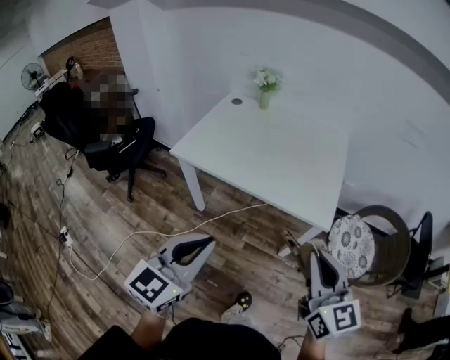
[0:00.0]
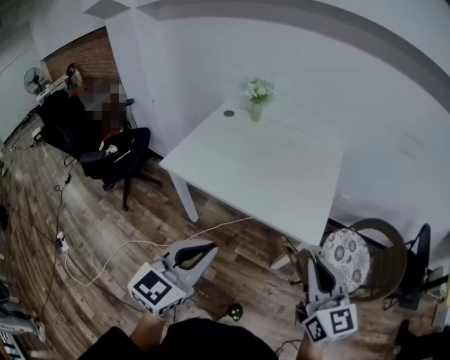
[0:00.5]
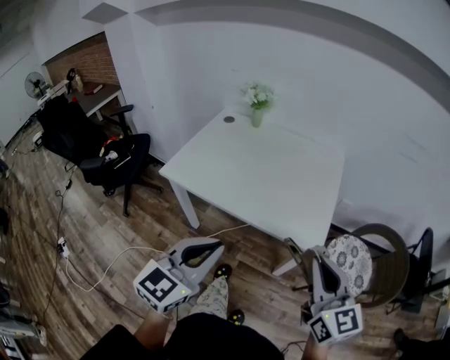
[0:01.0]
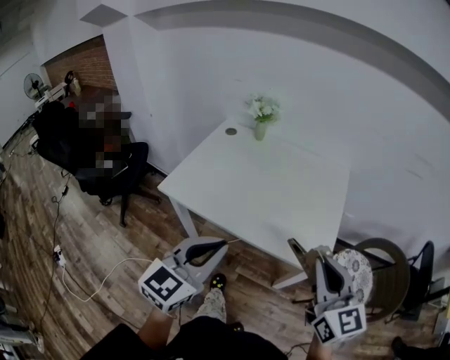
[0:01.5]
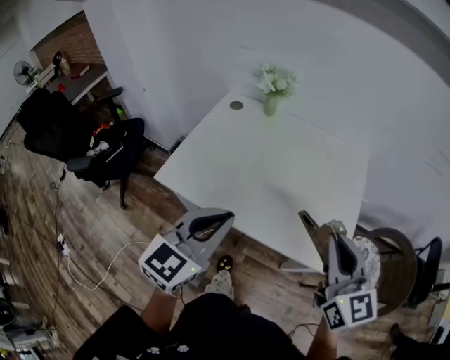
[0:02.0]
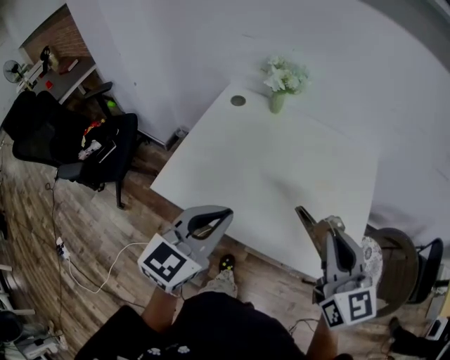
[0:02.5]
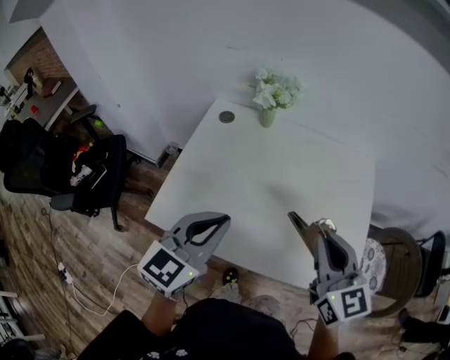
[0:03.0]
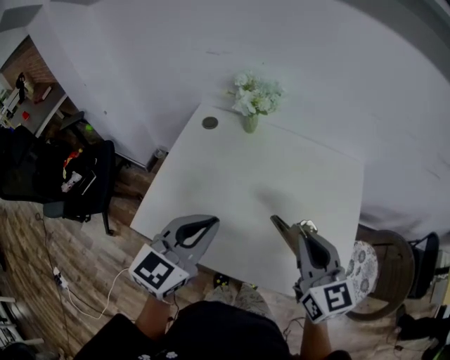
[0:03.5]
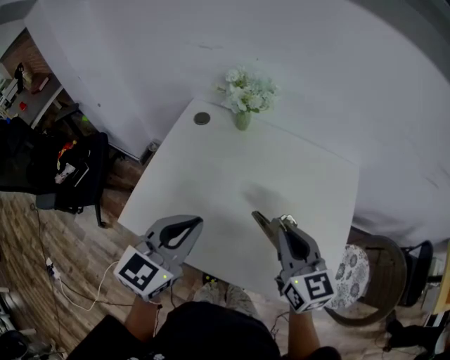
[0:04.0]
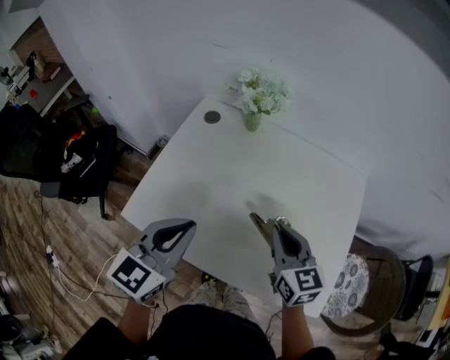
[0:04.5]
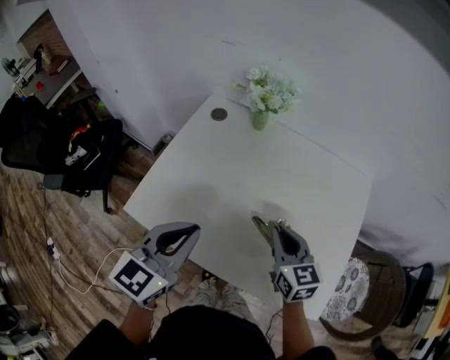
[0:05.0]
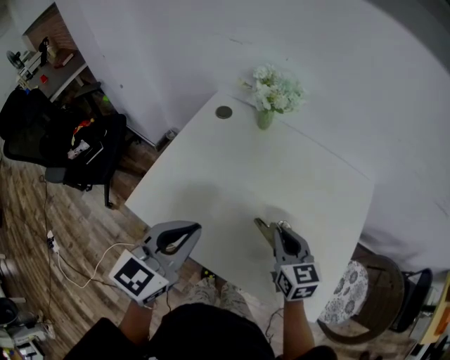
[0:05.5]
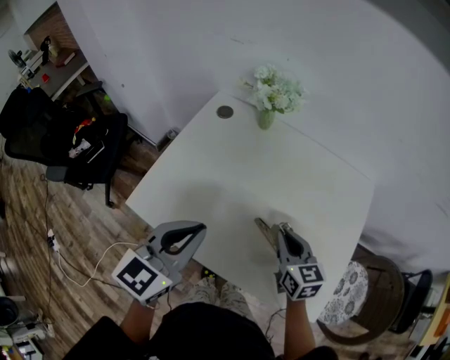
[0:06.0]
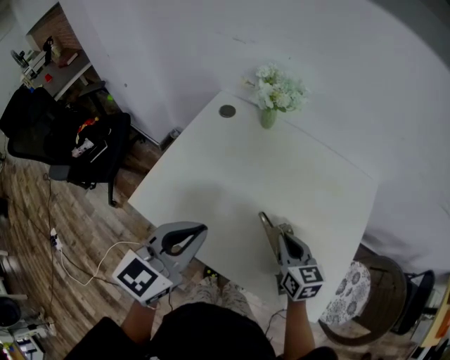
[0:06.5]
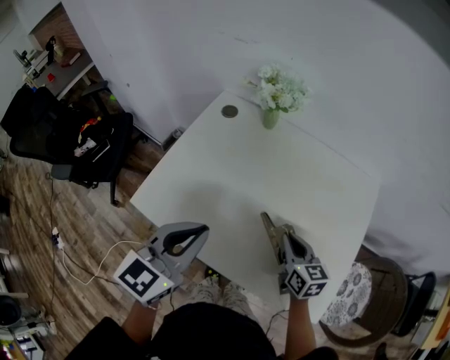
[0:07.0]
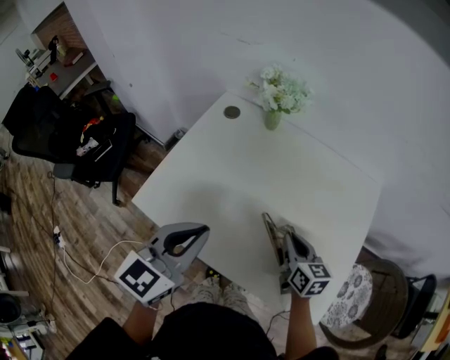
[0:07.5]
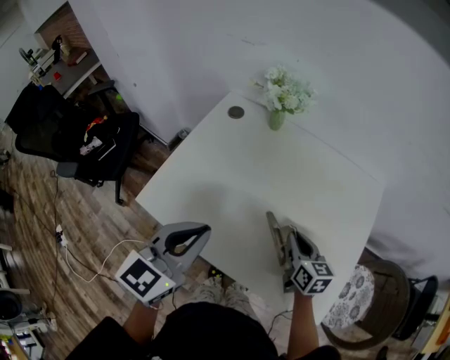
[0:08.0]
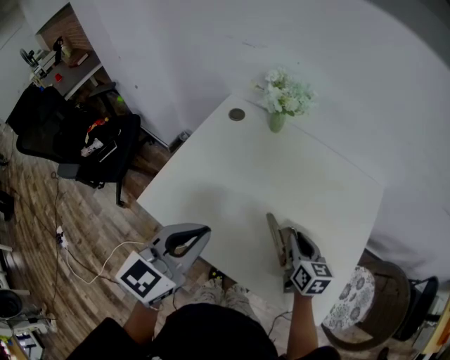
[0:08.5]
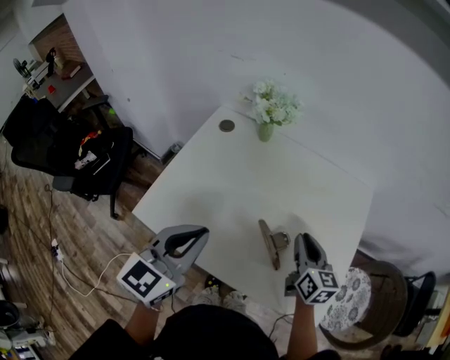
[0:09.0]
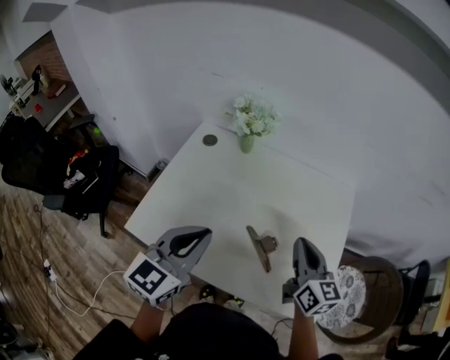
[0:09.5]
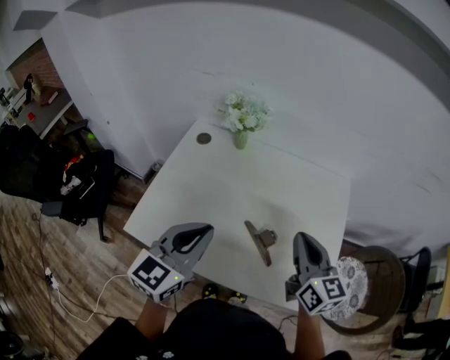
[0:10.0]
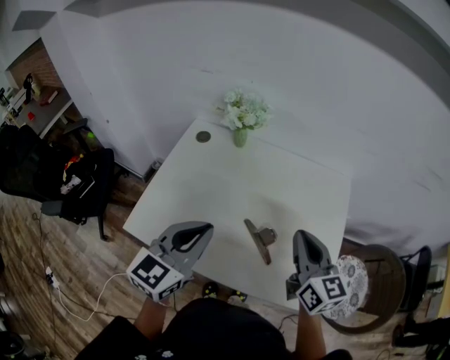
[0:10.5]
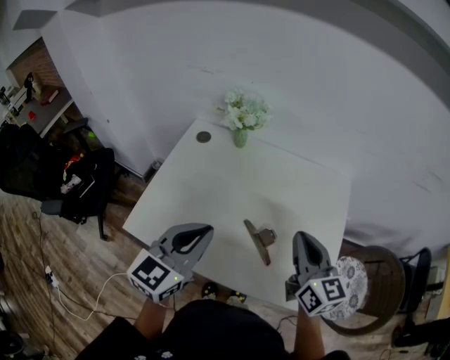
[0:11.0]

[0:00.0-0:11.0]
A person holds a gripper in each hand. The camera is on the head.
0:00.0 to 0:02.0: Both grippers travel together forward, some 30 cm.
0:02.0 to 0:03.5: The right gripper goes some 20 cm forward and to the left; the left gripper travels forward by some 20 cm.
0:03.5 to 0:05.5: The right gripper heads downward, covering roughly 15 cm.
0:05.5 to 0:07.5: The right gripper heads downward, covering roughly 5 cm.
0:07.5 to 0:09.0: The right gripper moves upward, roughly 5 cm.
0:09.0 to 0:11.0: The right gripper shifts roughly 10 cm upward.

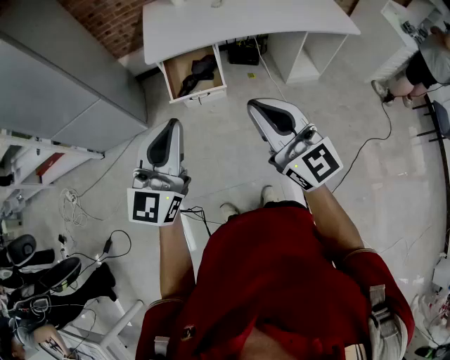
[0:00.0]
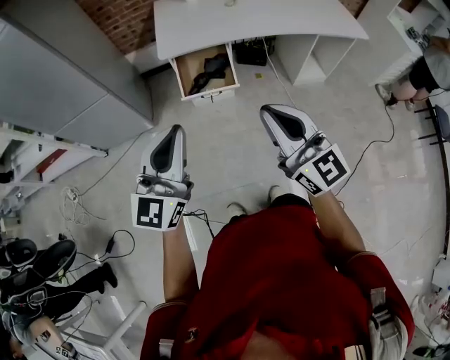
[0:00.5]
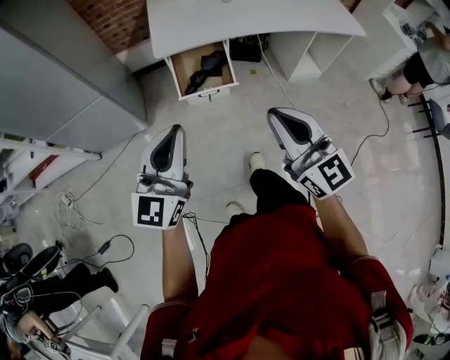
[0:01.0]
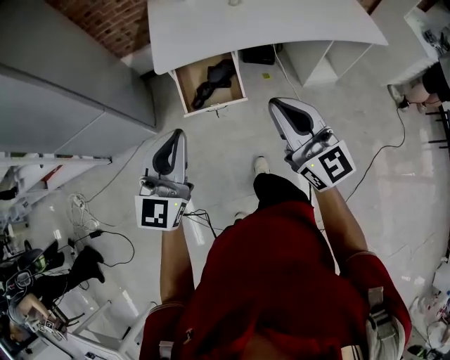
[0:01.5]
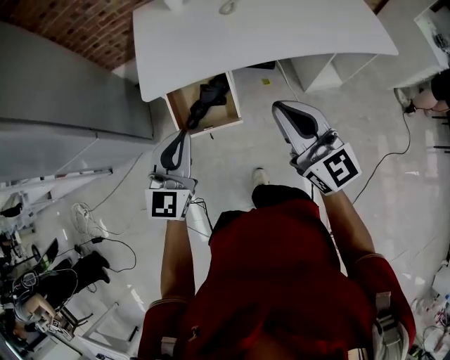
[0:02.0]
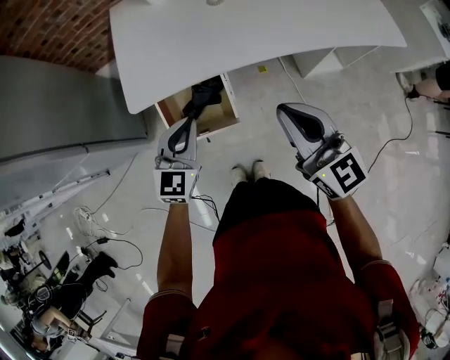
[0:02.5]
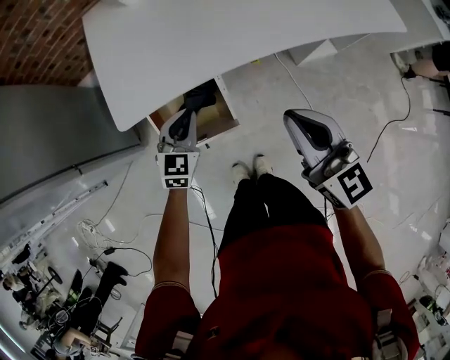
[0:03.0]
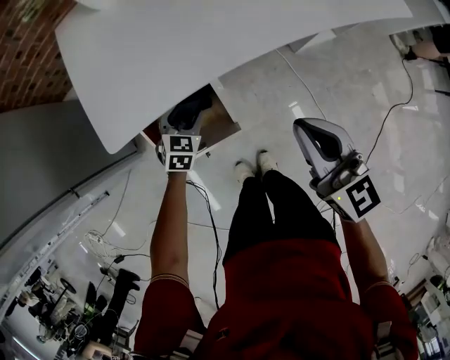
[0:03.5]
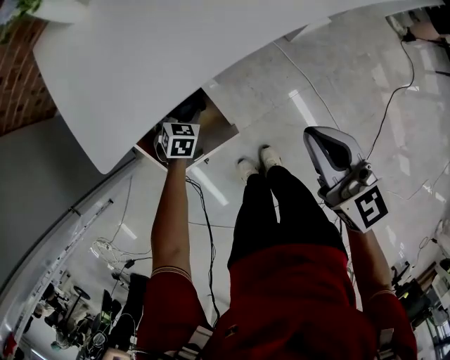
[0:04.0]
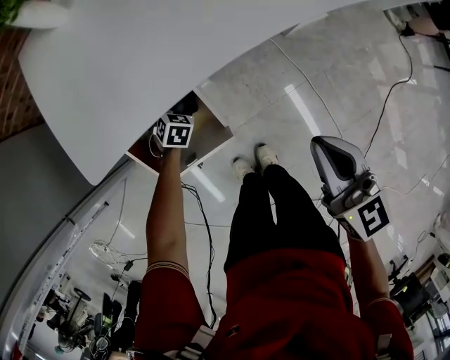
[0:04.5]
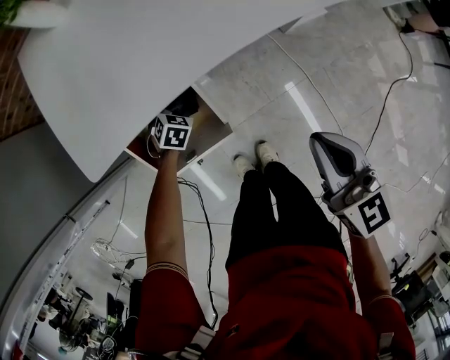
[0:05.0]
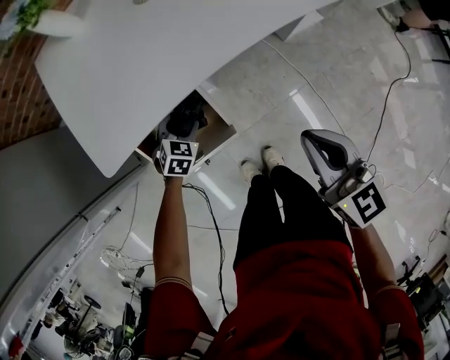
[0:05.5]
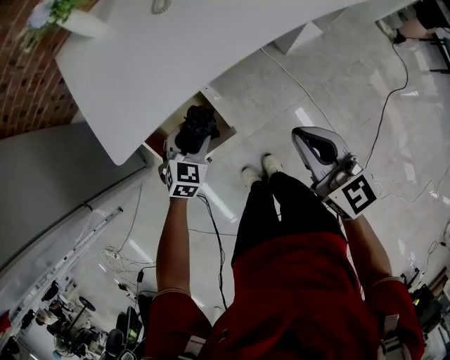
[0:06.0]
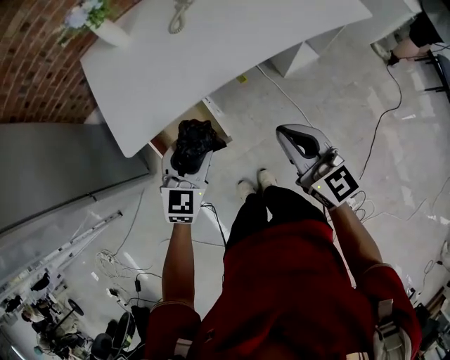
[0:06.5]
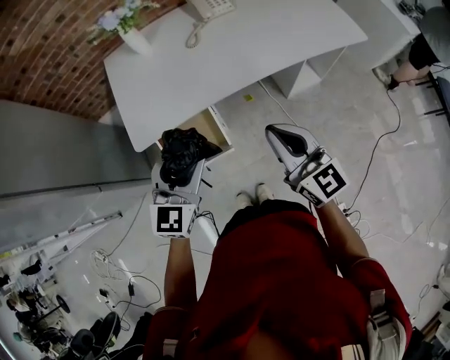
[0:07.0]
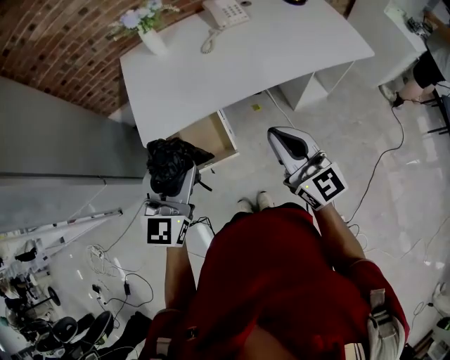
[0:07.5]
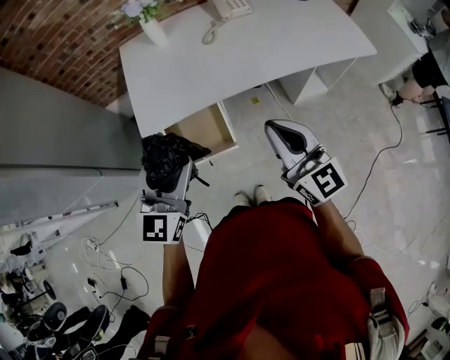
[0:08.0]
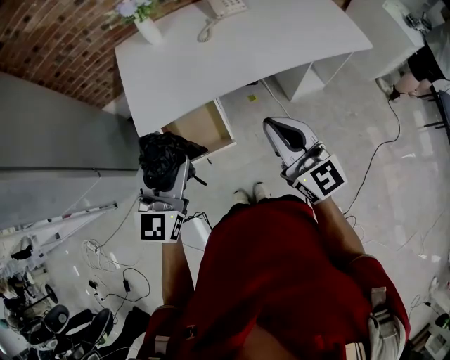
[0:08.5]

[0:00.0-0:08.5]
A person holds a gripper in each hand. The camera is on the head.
0:00.0 to 0:02.0: The left gripper heads forward and downward, covering approximately 35 cm, while the right gripper is displaced forward by roughly 30 cm.
0:02.0 to 0:04.0: The right gripper heads downward and forward, covering some 20 cm, and rotates approximately 30 degrees, while the left gripper heads downward and forward, covering approximately 50 cm, points its fingers some 50 degrees further downward, and opens up.
0:04.0 to 0:06.5: The left gripper shifts approximately 35 cm upward, and points its fingers about 30 degrees further upward; the right gripper heads upward and backward, covering some 10 cm.
0:06.5 to 0:08.5: The left gripper goes approximately 20 cm upward, backward and to the left, and changes its angle by about 20 degrees; the right gripper travels upward by roughly 10 cm.

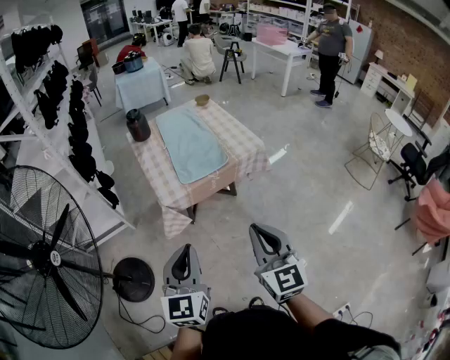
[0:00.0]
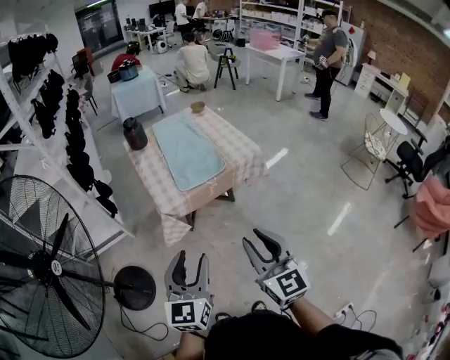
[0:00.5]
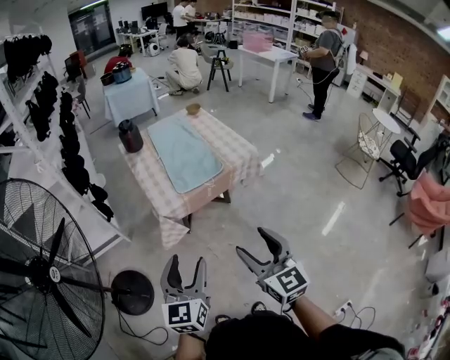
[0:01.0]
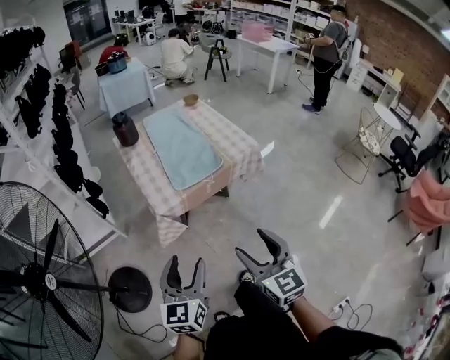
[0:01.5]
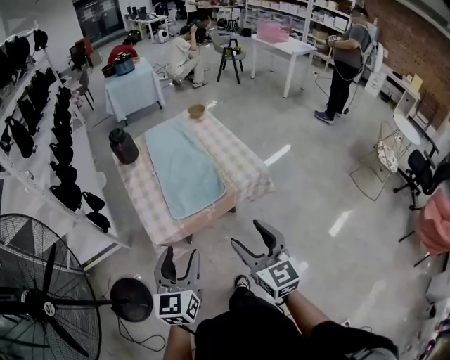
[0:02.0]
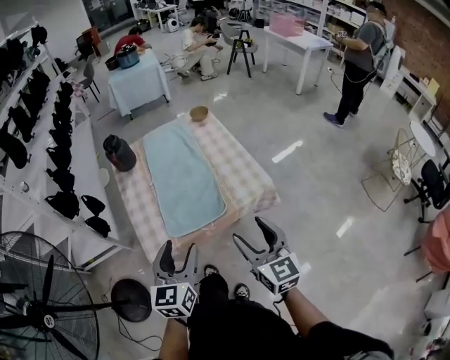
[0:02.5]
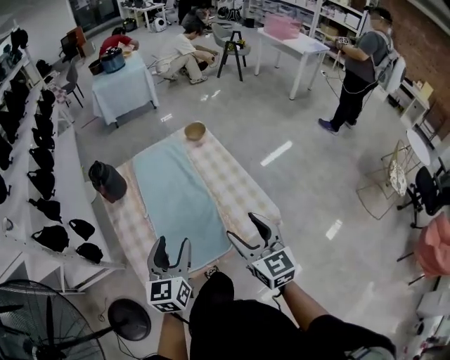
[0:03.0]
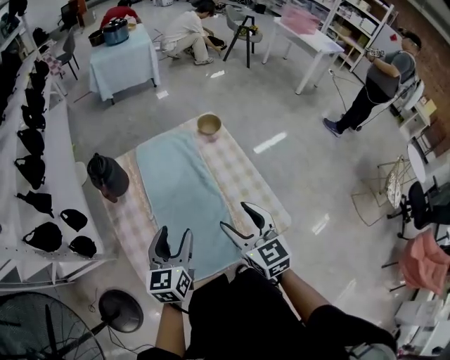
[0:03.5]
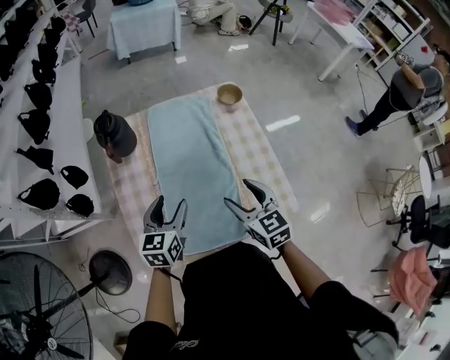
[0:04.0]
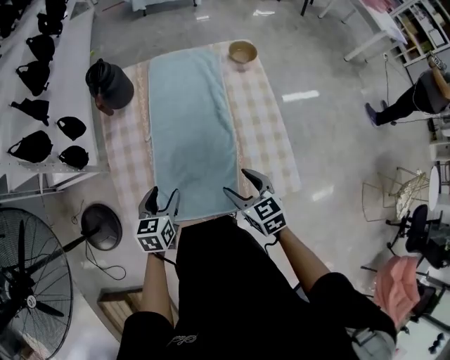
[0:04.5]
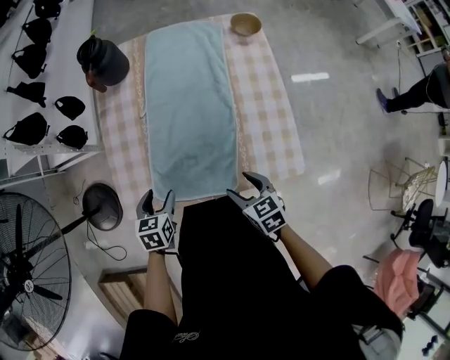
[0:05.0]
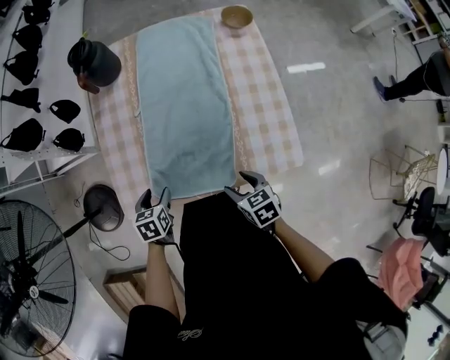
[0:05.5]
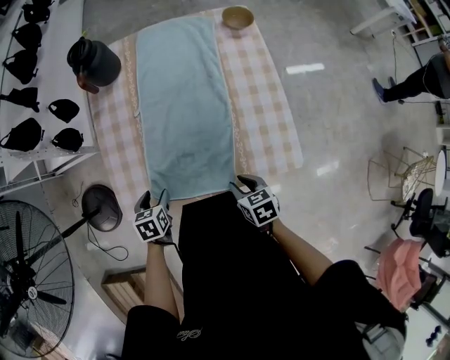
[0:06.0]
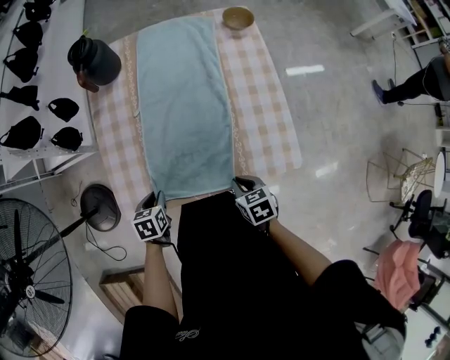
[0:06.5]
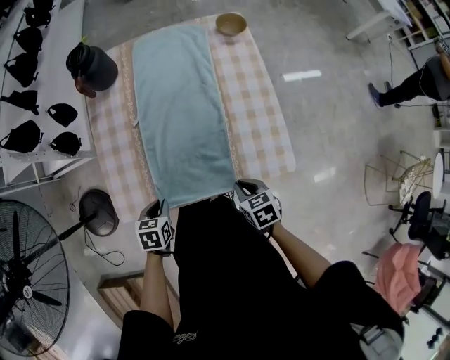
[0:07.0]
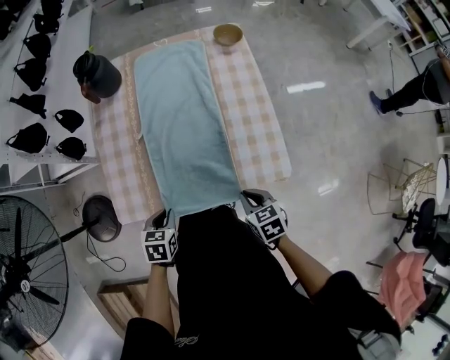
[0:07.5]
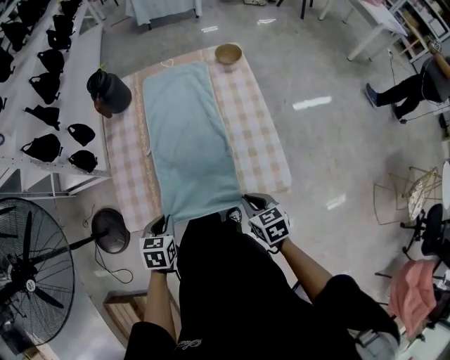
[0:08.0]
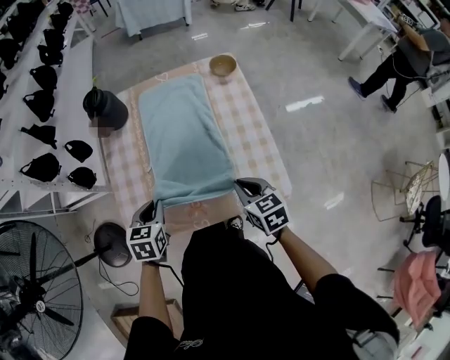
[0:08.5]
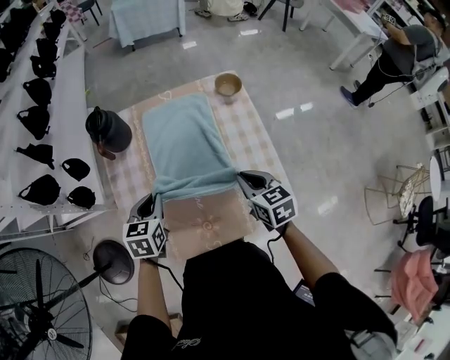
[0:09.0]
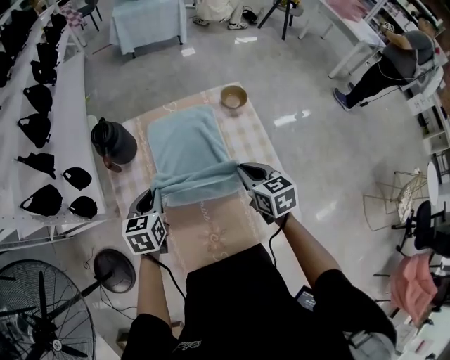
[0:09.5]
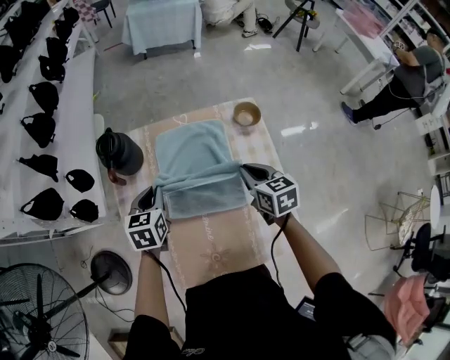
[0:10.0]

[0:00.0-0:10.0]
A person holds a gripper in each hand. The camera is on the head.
0:00.0 to 0:02.0: Both grippers move forward, approximately 20 cm. The left gripper opens its fingers, while the right gripper opens its fingers.
0:02.0 to 0:04.0: Both grippers are carried forward, some 50 cm. The right gripper turns by approximately 30 degrees.
0:04.0 to 0:06.0: The two grippers go roughly 25 cm downward and backward. The right gripper changes its angle by some 30 degrees, and closes; the left gripper tilts its fingers approximately 40 degrees downward.
0:06.0 to 0:08.0: Both grippers move upward and to the right, about 10 cm. The left gripper closes. Meanwhile the right gripper closes up.
0:08.0 to 0:10.0: Both grippers move forward, approximately 35 cm.
